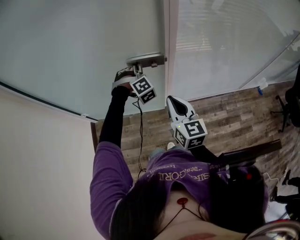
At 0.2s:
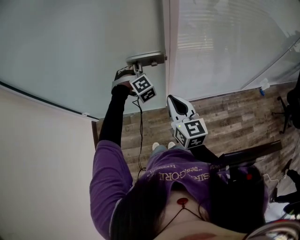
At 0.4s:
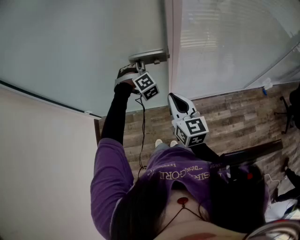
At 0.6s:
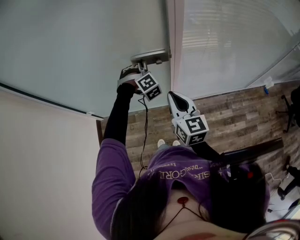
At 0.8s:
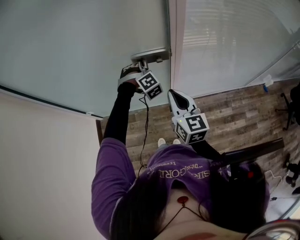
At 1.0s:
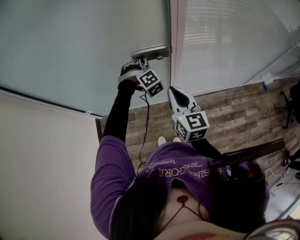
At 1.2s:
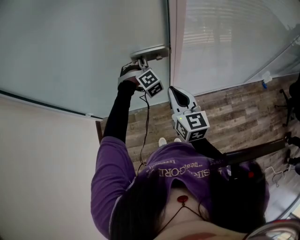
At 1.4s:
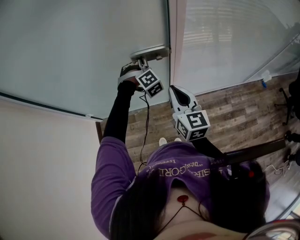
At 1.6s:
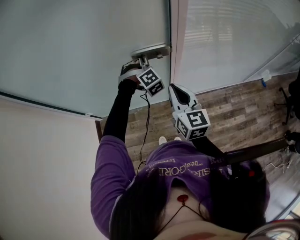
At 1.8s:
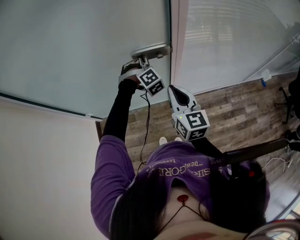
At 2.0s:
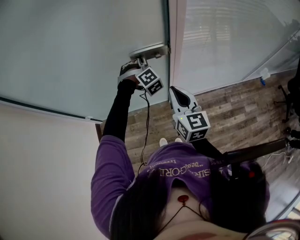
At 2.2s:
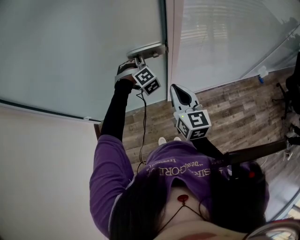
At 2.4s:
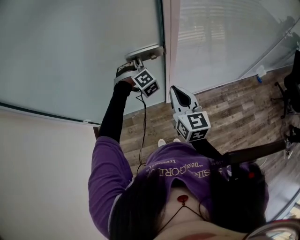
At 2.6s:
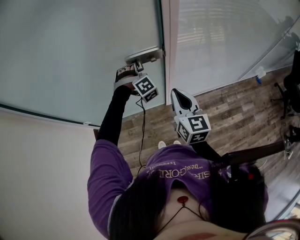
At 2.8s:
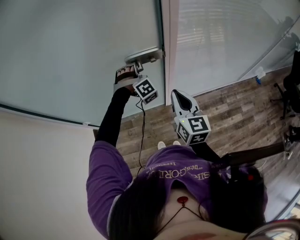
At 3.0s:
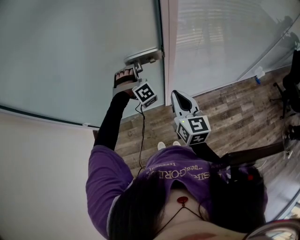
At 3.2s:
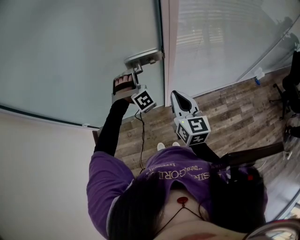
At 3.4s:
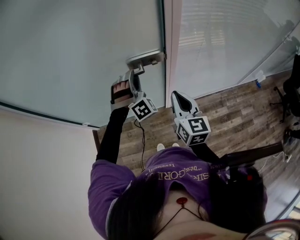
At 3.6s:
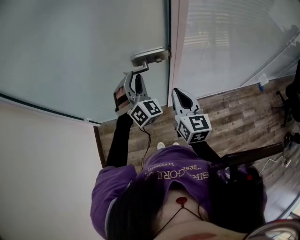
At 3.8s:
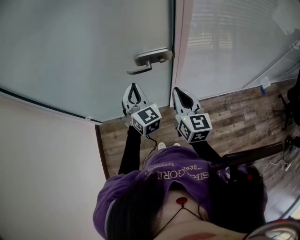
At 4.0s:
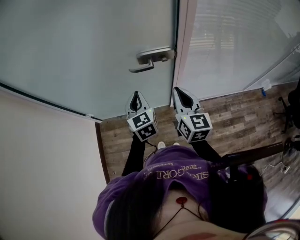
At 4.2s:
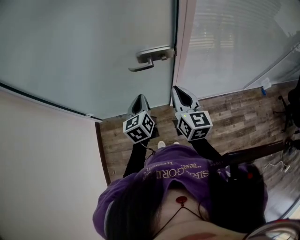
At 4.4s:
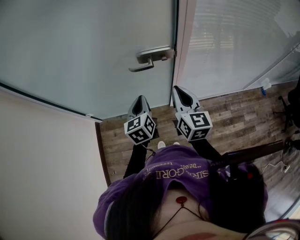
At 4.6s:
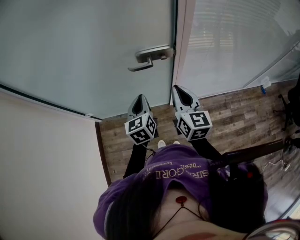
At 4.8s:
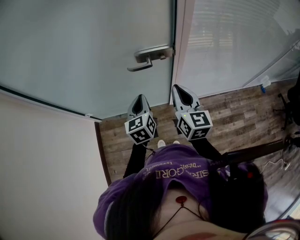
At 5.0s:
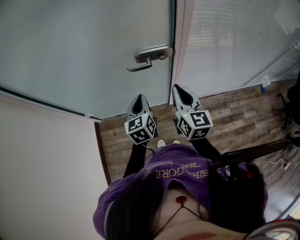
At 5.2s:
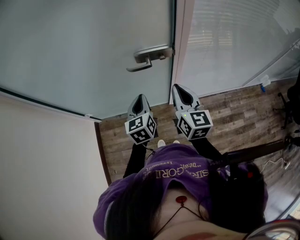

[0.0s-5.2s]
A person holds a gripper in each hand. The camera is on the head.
0.0s to 1.8s: The grippers move only a little.
1.8s to 3.4s: The left gripper goes roughly 10 cm upward and backward, turns by approximately 30 degrees, and opens up.
3.4s to 5.2s: The left gripper travels backward by some 10 cm, rolls counterclockwise, seen from behind, by about 90 degrees, and closes its fingers.

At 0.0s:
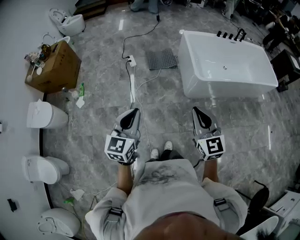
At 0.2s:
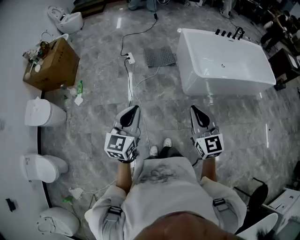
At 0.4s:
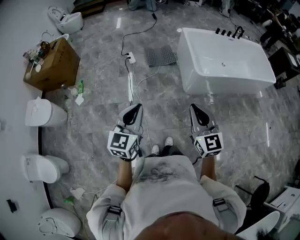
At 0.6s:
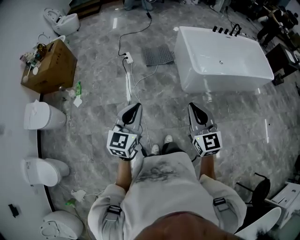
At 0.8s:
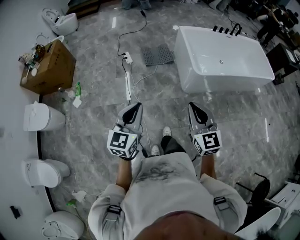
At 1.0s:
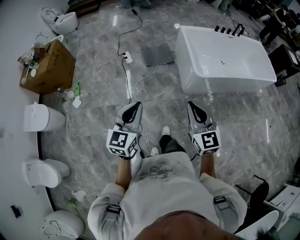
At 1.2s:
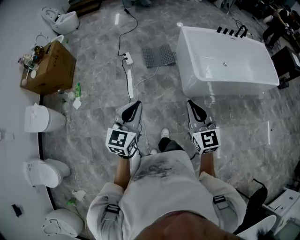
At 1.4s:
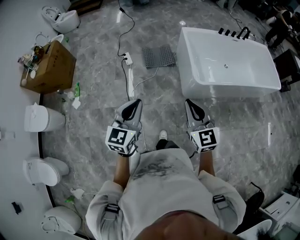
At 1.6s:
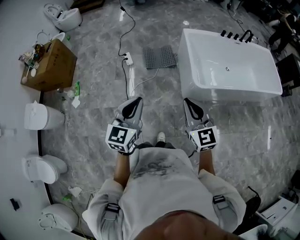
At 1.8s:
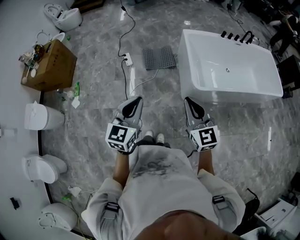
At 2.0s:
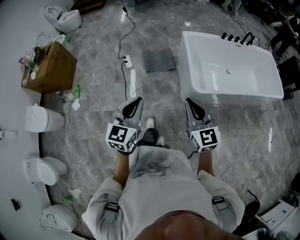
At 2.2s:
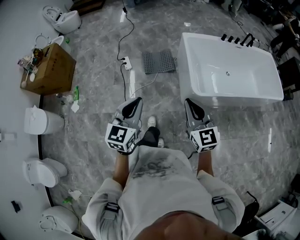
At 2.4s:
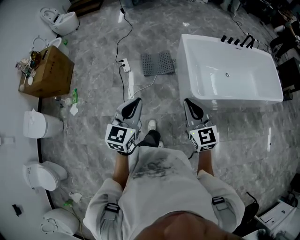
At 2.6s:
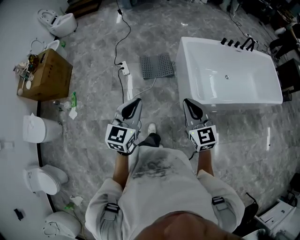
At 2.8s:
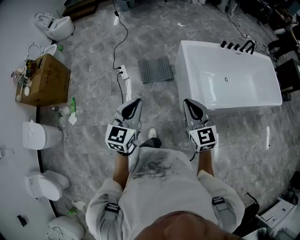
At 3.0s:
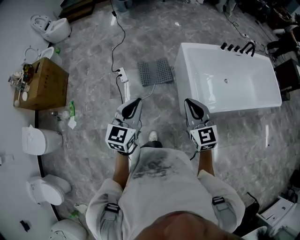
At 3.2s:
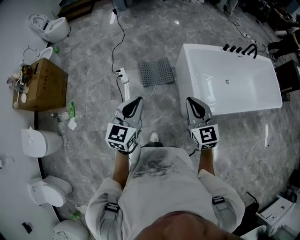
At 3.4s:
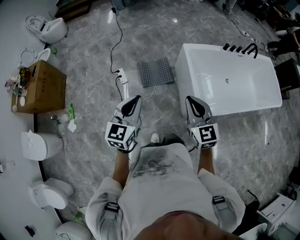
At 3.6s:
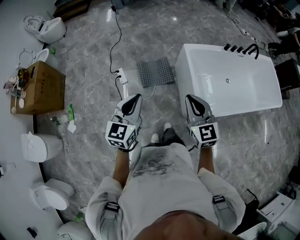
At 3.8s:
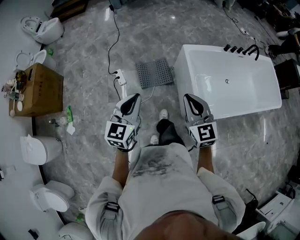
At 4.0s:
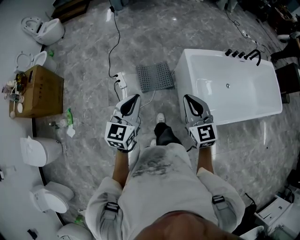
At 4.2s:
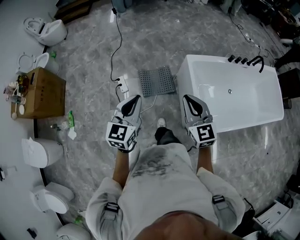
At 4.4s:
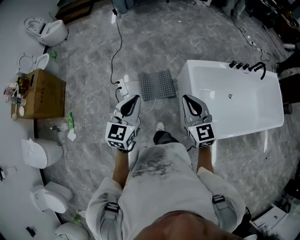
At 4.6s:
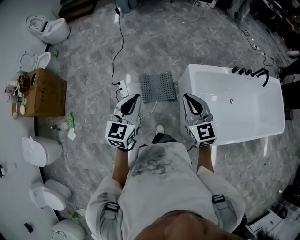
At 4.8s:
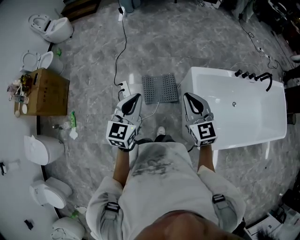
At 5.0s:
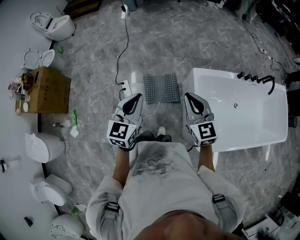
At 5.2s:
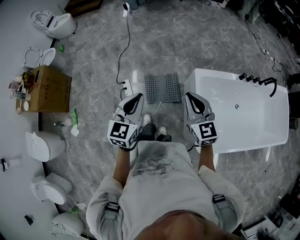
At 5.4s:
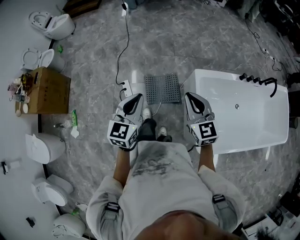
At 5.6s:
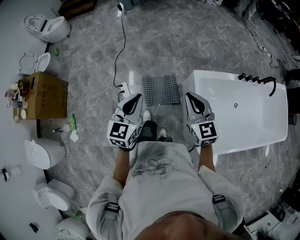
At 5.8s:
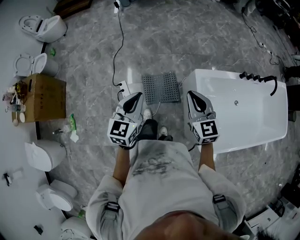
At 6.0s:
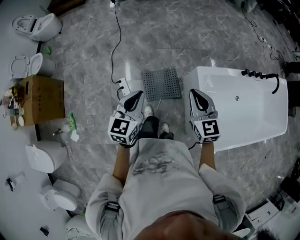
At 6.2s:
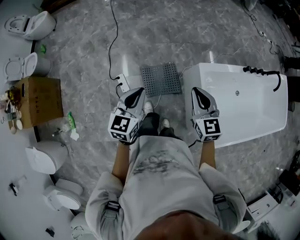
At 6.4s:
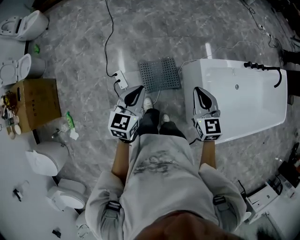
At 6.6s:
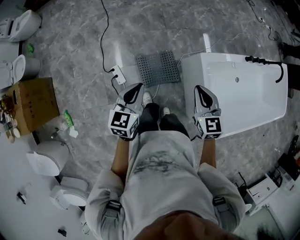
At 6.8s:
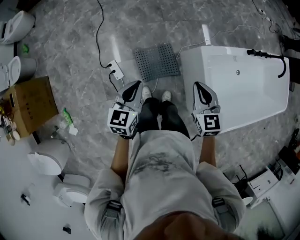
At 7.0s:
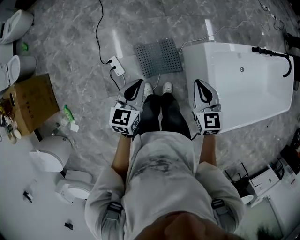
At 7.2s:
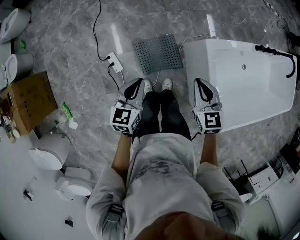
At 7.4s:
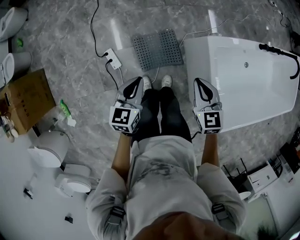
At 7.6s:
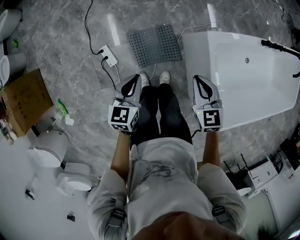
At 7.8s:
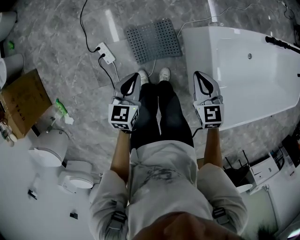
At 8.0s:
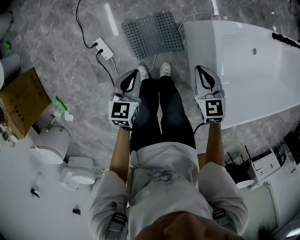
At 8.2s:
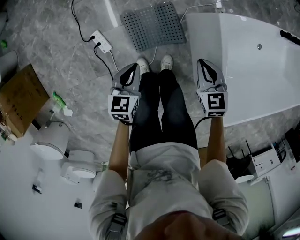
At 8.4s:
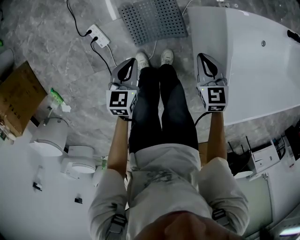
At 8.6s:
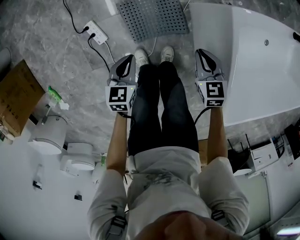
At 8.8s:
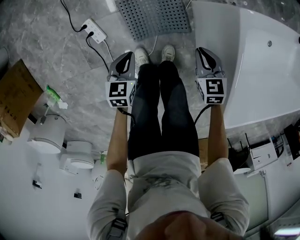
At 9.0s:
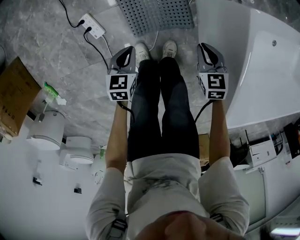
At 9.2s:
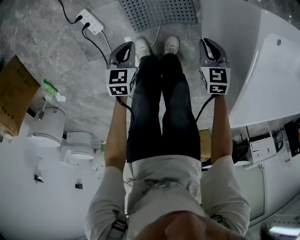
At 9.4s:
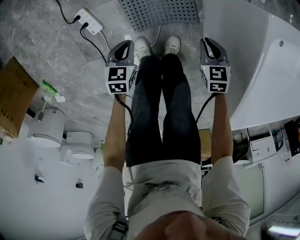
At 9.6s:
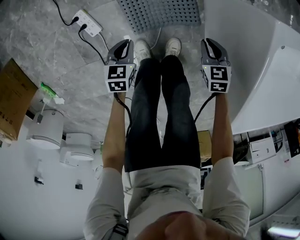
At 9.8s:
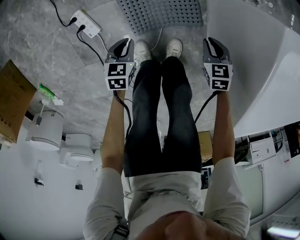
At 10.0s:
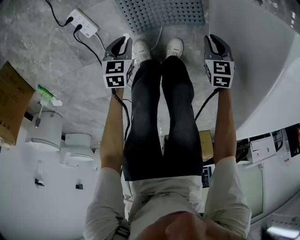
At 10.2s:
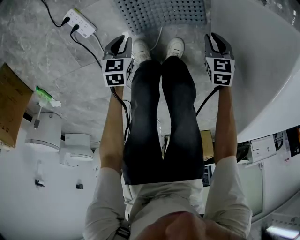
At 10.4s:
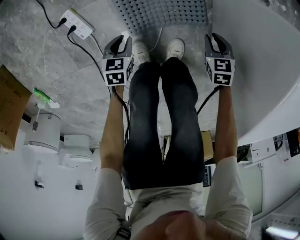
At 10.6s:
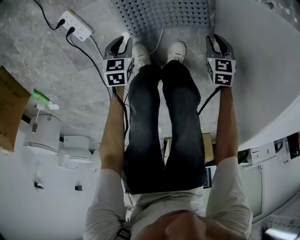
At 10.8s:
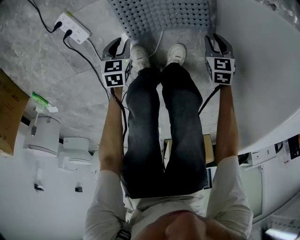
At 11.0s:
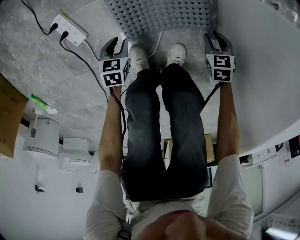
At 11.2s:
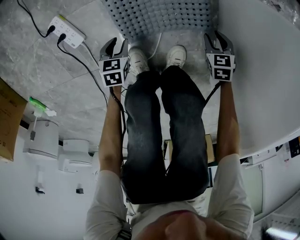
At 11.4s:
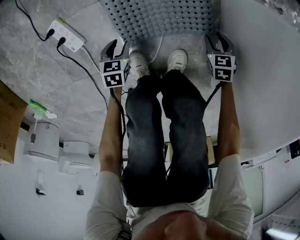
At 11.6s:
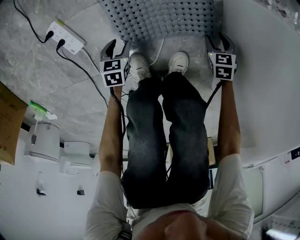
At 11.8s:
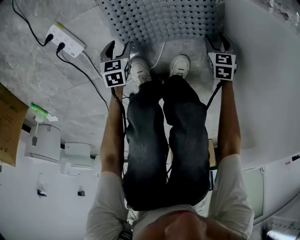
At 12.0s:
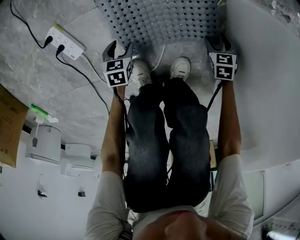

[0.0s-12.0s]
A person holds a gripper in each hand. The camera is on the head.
0.0s to 1.6s: Both grippers travel together forward, about 20 cm.
1.6s to 3.0s: Both grippers move forward, approximately 25 cm.
3.0s to 4.4s: The two grippers go about 25 cm forward.
4.4s to 6.0s: Both grippers move forward, about 20 cm.
6.0s to 7.6s: Both grippers travel together downward, about 25 cm.
7.6s to 9.0s: Both grippers travel together downward, some 35 cm.
9.0s to 10.4s: The grippers both shift downward by roughly 25 cm.
10.4s to 12.0s: Both grippers travel together downward, about 20 cm. The left gripper opens its fingers; the right gripper opens its fingers.

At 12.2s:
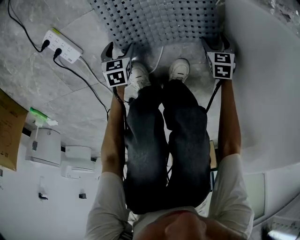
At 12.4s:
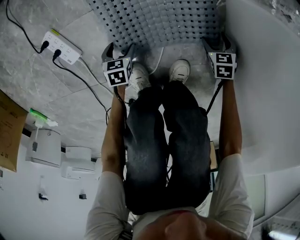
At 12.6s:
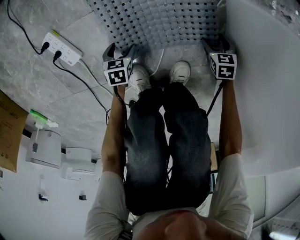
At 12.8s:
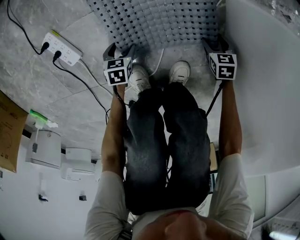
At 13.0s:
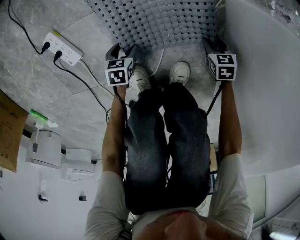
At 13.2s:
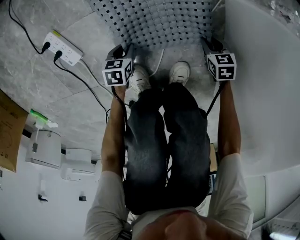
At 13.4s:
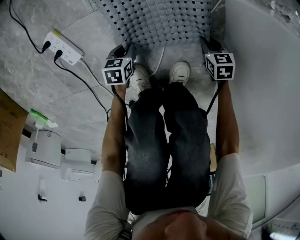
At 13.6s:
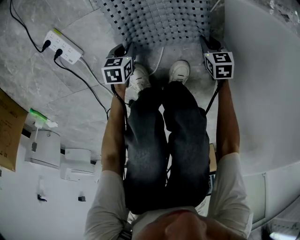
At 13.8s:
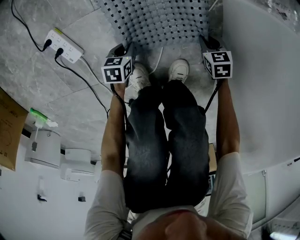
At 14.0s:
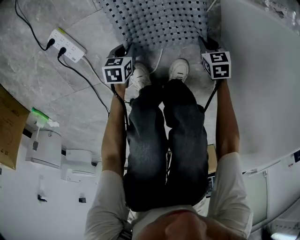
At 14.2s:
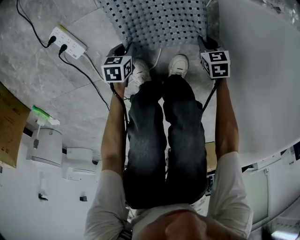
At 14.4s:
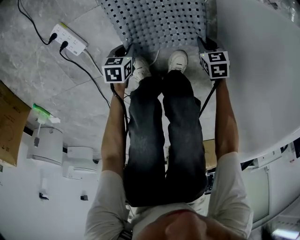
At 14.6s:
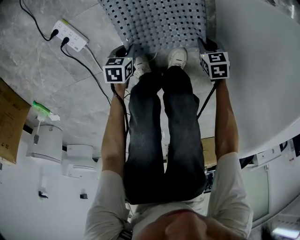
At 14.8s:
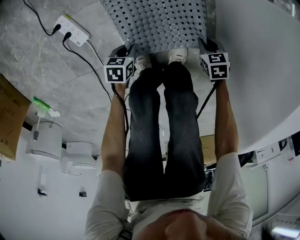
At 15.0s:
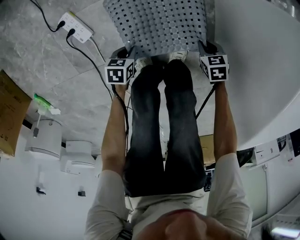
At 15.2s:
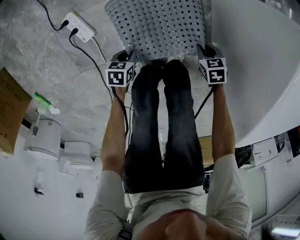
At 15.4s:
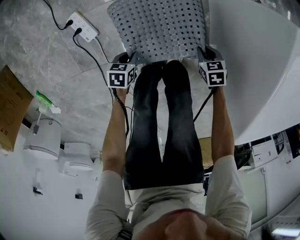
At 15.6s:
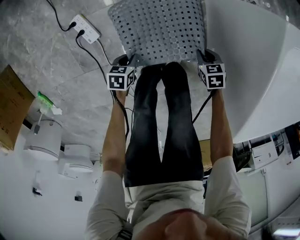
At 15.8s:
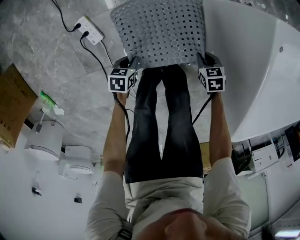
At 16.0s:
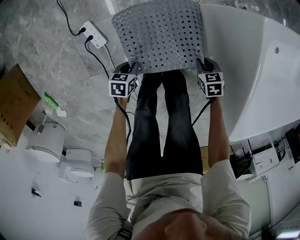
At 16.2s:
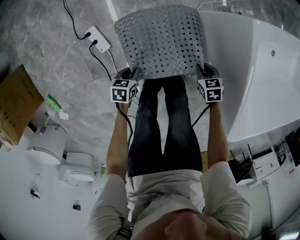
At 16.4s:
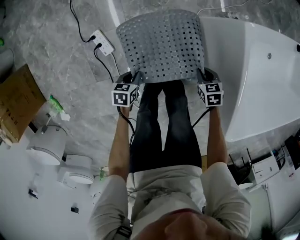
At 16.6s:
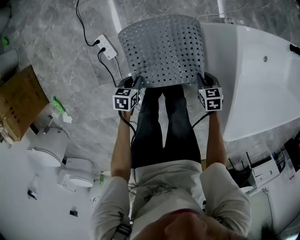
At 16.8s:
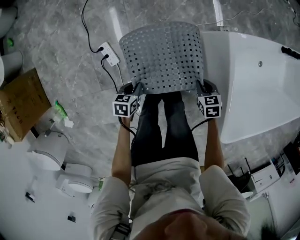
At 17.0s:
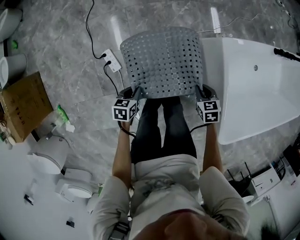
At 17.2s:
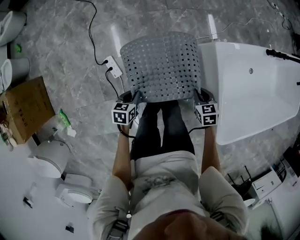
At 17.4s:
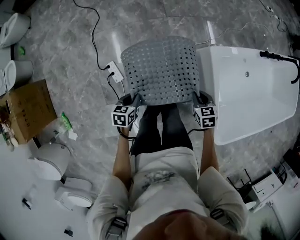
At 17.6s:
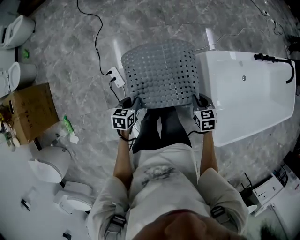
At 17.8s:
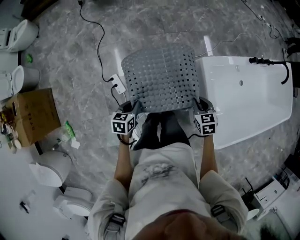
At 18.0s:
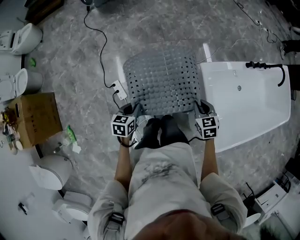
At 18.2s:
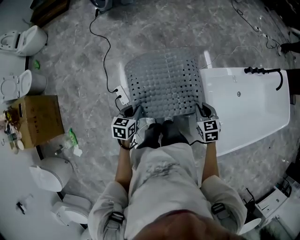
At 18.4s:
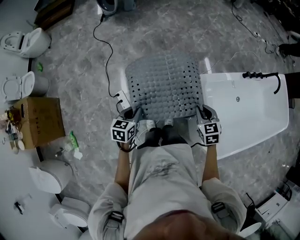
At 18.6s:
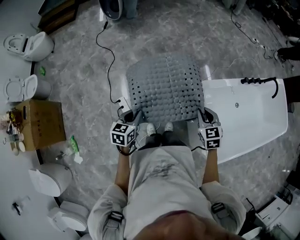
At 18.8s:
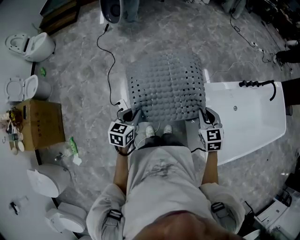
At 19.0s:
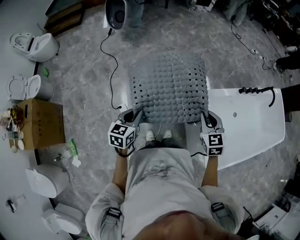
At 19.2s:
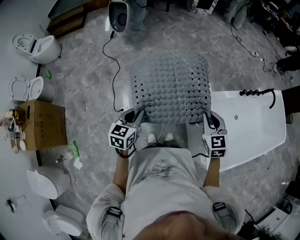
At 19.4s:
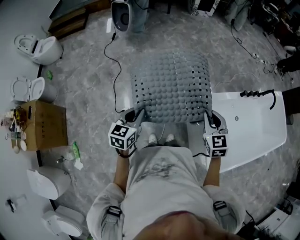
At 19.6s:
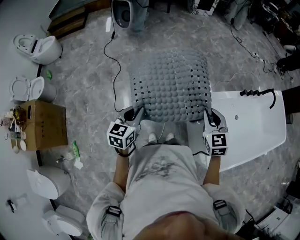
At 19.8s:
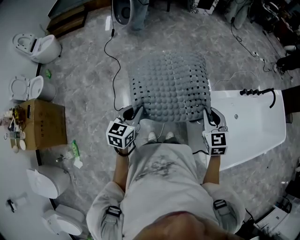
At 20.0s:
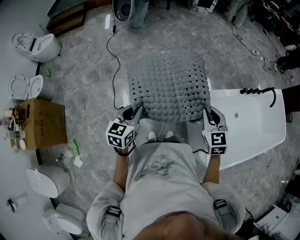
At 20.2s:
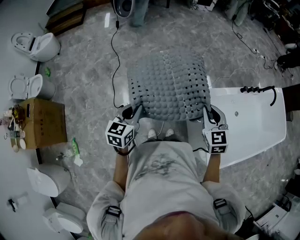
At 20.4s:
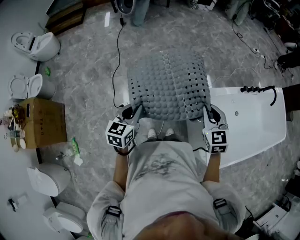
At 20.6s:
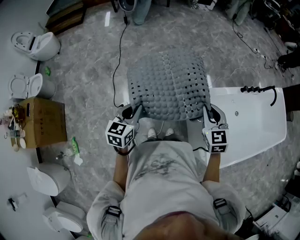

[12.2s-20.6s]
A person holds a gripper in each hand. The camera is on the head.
12.2s to 13.6s: The right gripper closes up; the left gripper closes its fingers.
13.6s to 15.0s: The two grippers go some 15 cm upward.
15.0s to 16.4s: The grippers both shift upward by roughly 25 cm.
16.4s to 17.8s: The grippers both shift upward by approximately 35 cm.
17.8s to 19.2s: Both grippers travel together upward, roughly 25 cm. The right gripper changes its angle by some 30 degrees; the left gripper rotates roughly 20 degrees.
19.2s to 20.6s: The grippers make only small movements.
